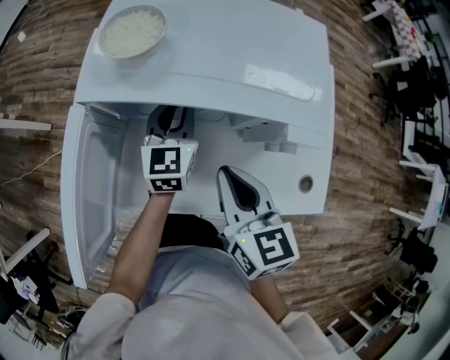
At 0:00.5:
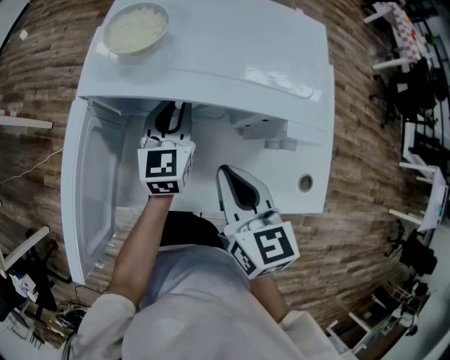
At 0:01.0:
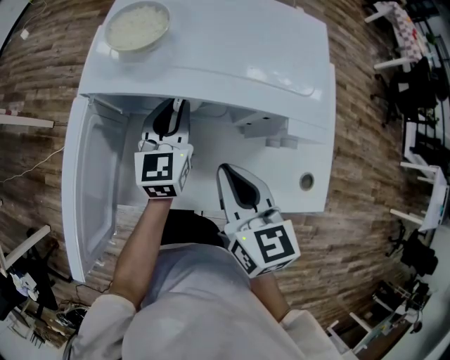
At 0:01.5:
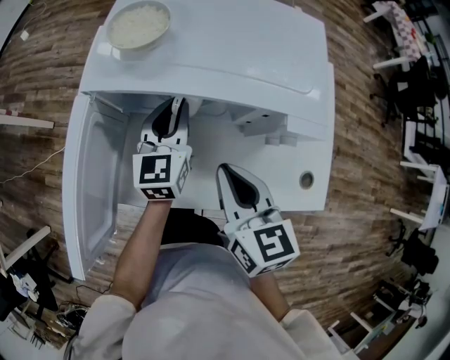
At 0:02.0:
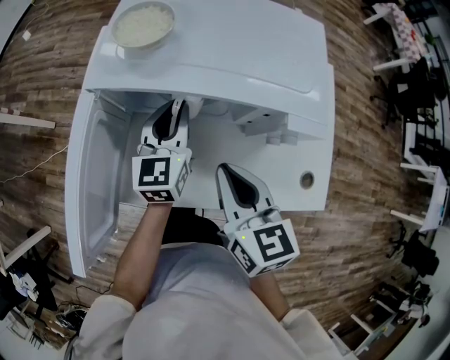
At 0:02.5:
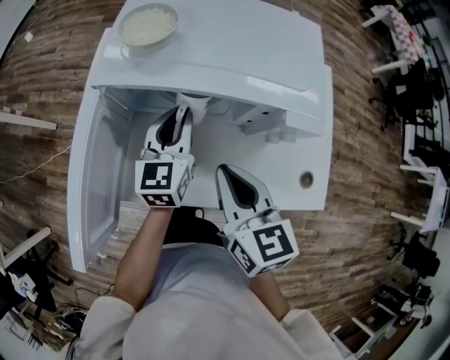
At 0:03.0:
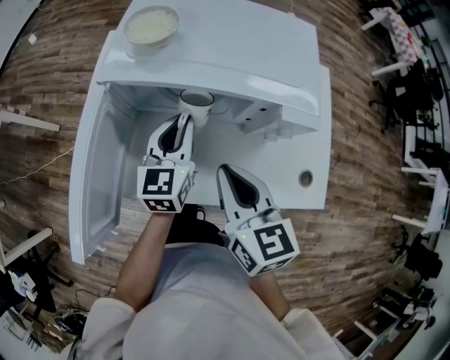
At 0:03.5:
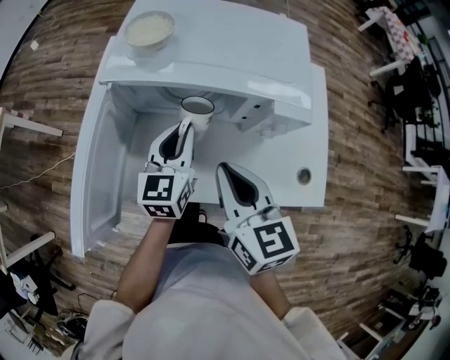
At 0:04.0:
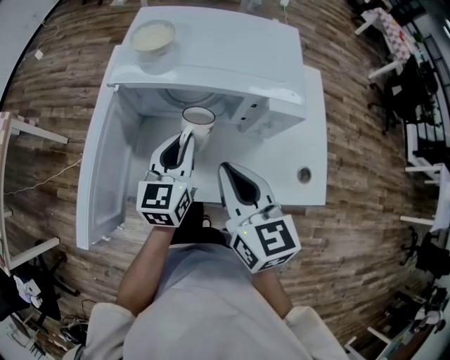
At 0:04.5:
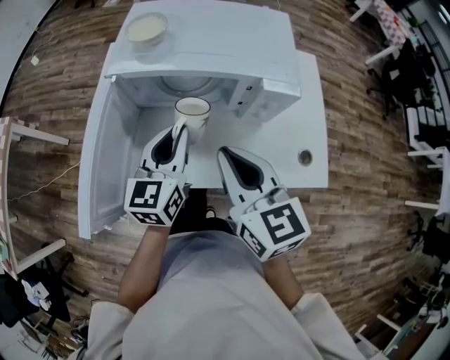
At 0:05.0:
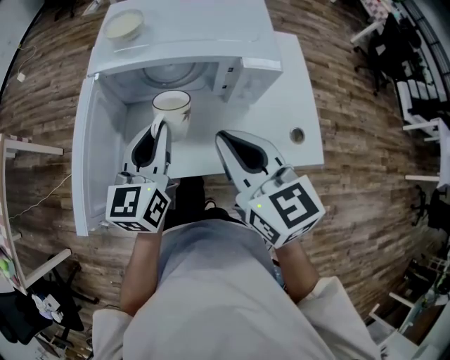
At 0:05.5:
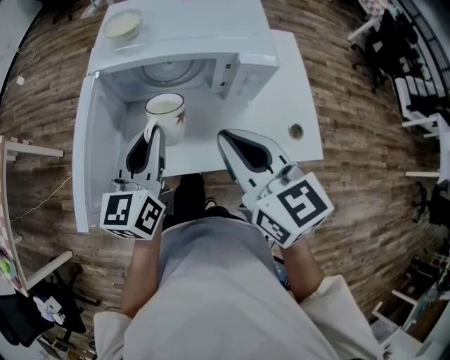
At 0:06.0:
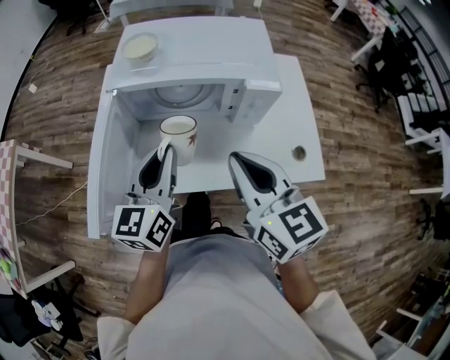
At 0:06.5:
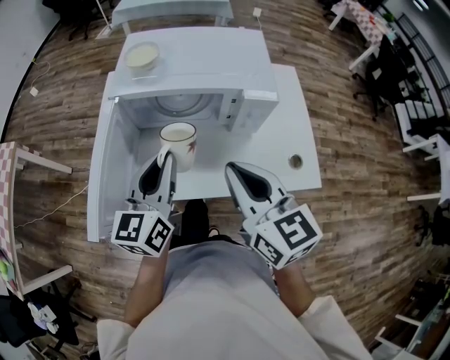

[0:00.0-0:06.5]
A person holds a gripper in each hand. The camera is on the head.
0:00.0 to 0:02.0: The left gripper shifts by some 5 cm.
0:02.0 to 0:04.5: The left gripper is displaced backward and upward by some 15 cm, while the right gripper travels upward and backward by about 10 cm.
0:04.5 to 0:06.5: The left gripper heads upward and backward, covering roughly 10 cm. The right gripper ends up roughly 5 cm from where it was.

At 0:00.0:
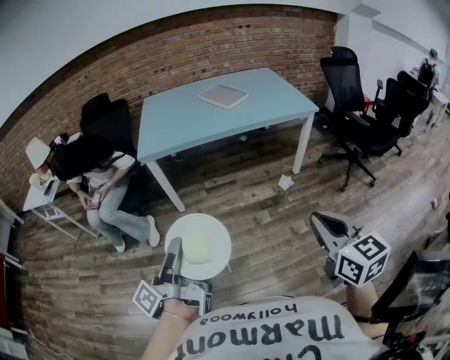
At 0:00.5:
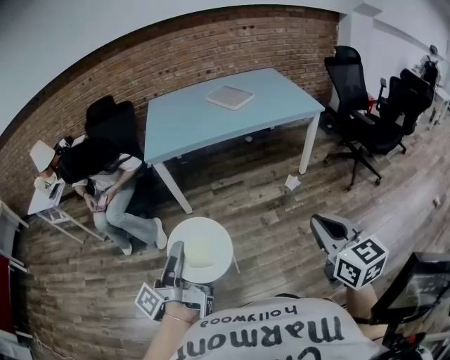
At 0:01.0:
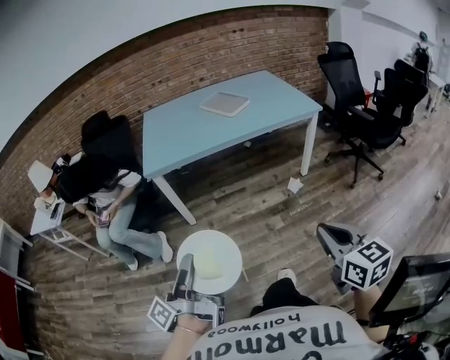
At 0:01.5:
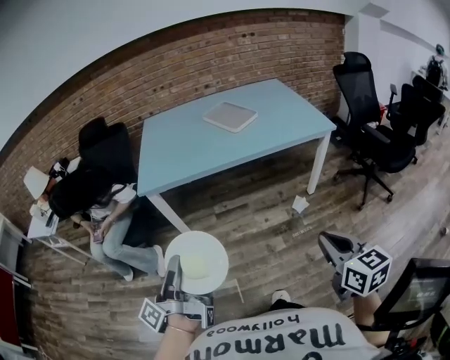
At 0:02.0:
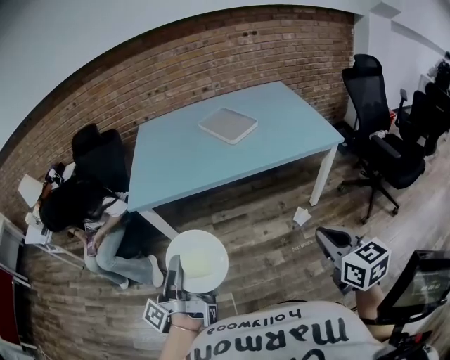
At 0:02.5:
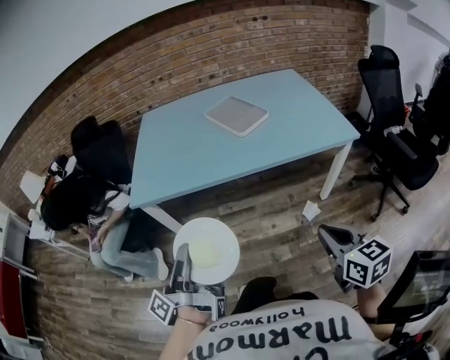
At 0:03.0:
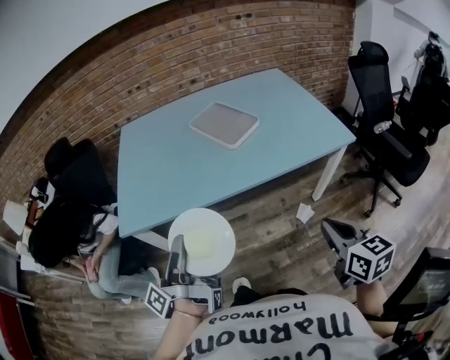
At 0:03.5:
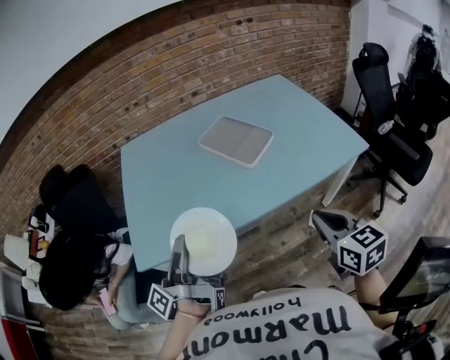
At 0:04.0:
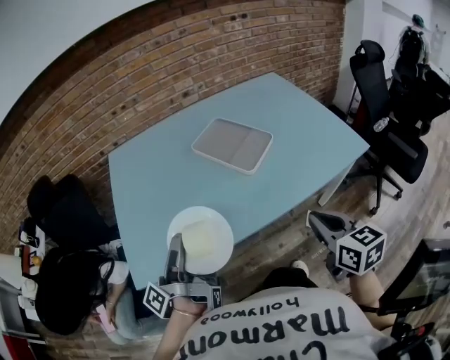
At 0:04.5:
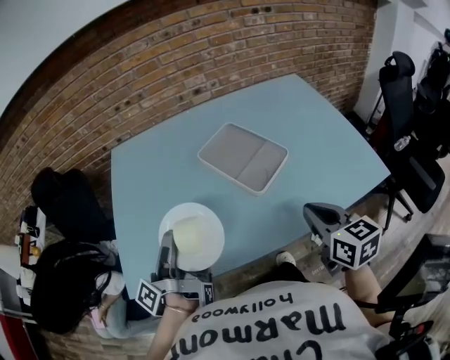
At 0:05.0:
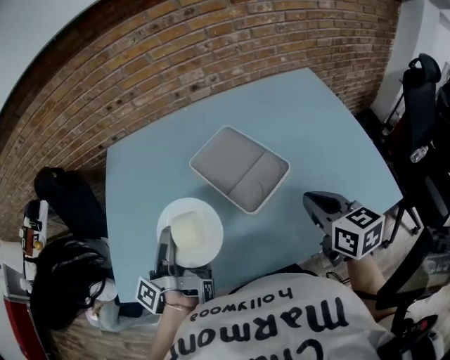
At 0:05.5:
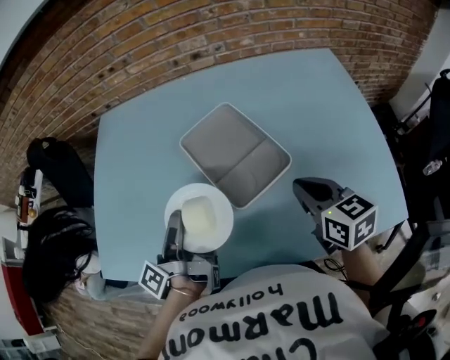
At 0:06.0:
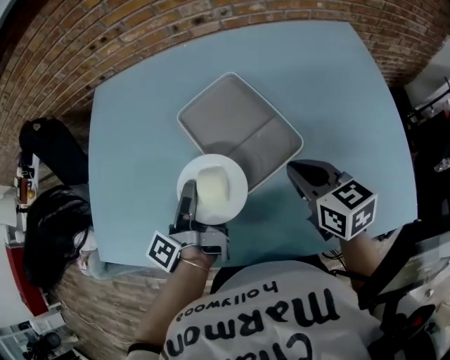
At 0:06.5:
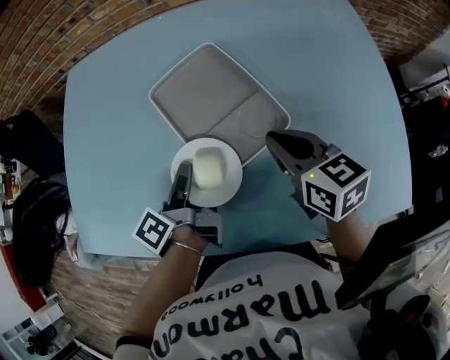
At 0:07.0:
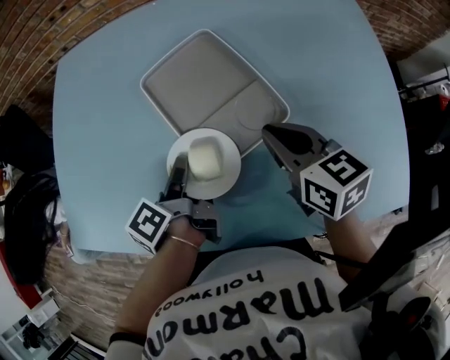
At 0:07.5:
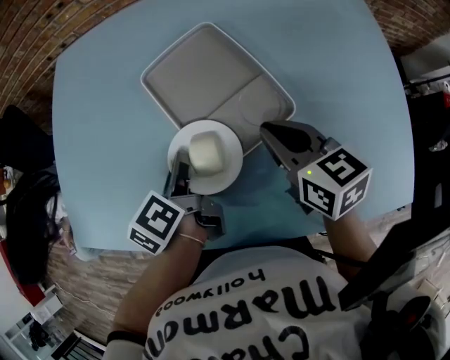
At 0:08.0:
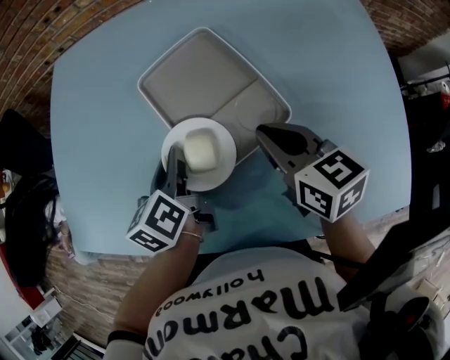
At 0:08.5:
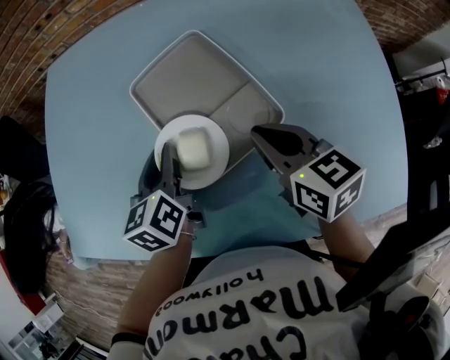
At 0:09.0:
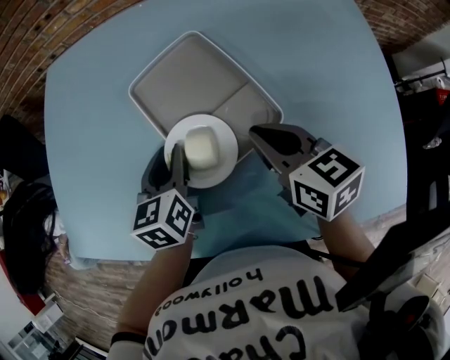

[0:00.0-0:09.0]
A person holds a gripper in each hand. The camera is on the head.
0:00.0 to 0:02.0: The right gripper ends up roughly 30 cm from where it was.
0:02.0 to 0:04.5: The right gripper moves some 50 cm.
0:04.5 to 0:07.0: The right gripper shifts by about 25 cm, and turns by approximately 30 degrees.

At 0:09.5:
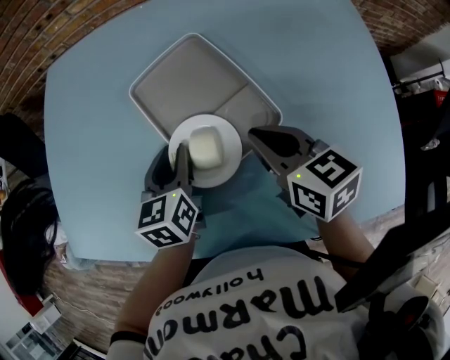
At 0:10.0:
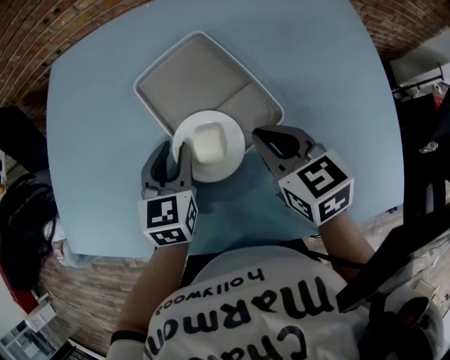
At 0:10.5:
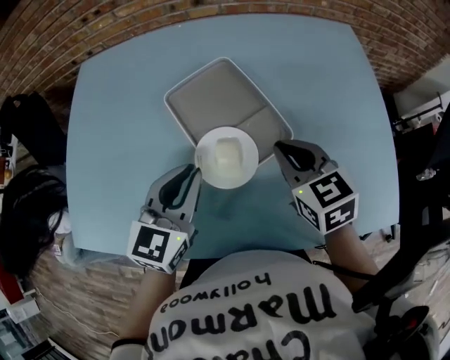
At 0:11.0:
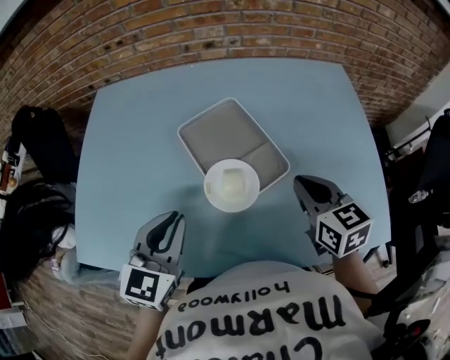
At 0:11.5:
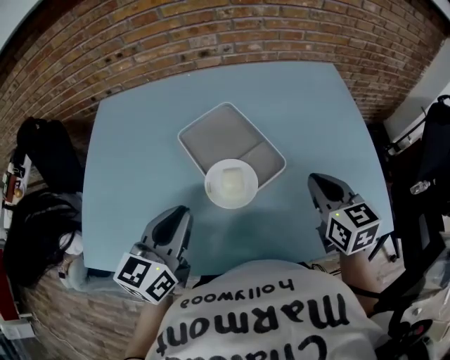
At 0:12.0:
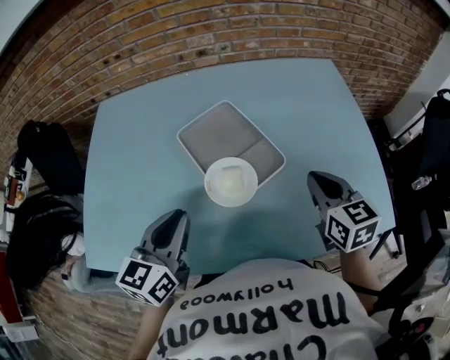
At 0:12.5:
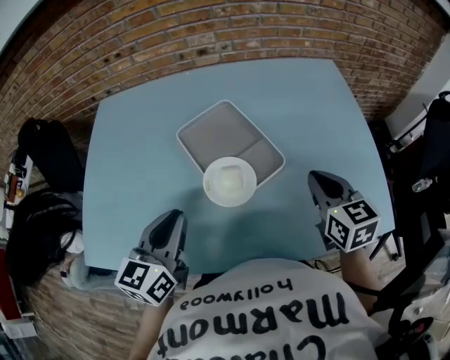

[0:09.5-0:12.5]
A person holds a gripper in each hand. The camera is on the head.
0:09.5 to 0:11.0: The right gripper travels upward by approximately 5 cm.
0:11.0 to 0:12.5: The right gripper ends up roughly 5 cm from where it was.

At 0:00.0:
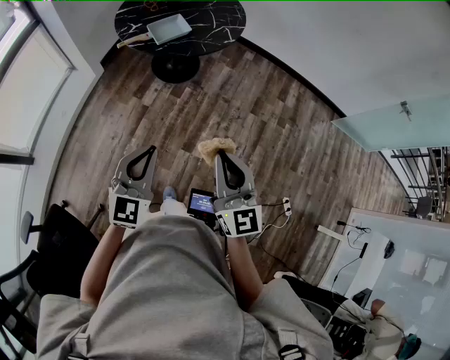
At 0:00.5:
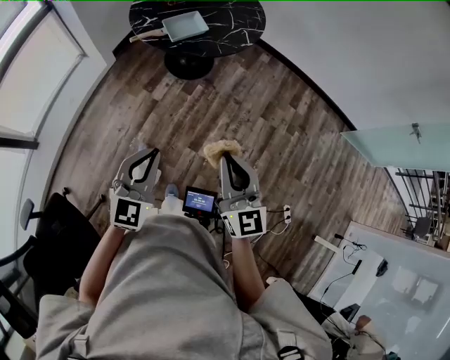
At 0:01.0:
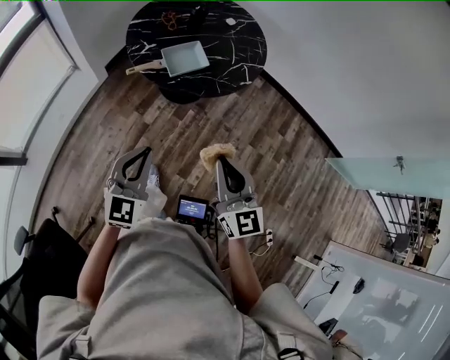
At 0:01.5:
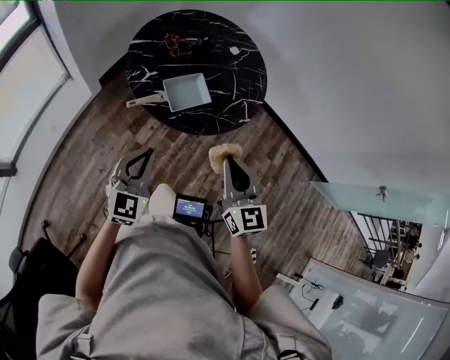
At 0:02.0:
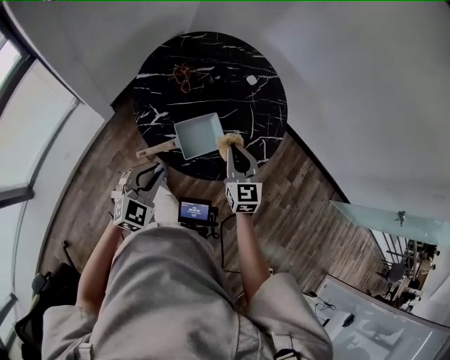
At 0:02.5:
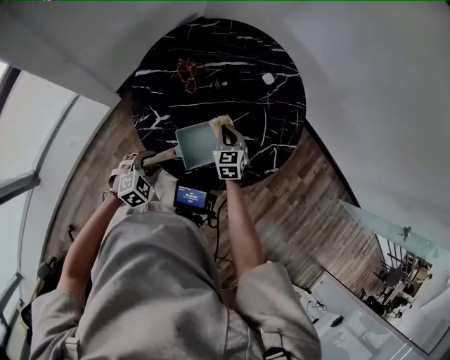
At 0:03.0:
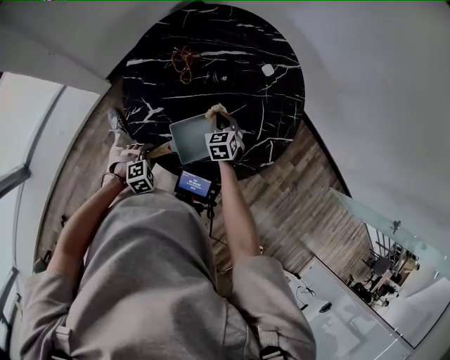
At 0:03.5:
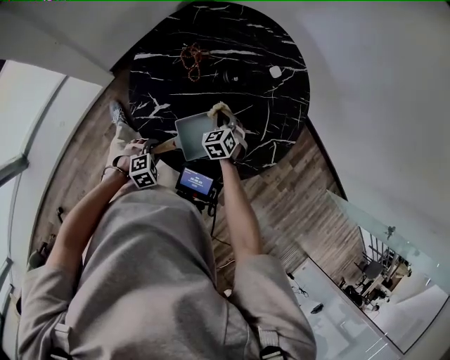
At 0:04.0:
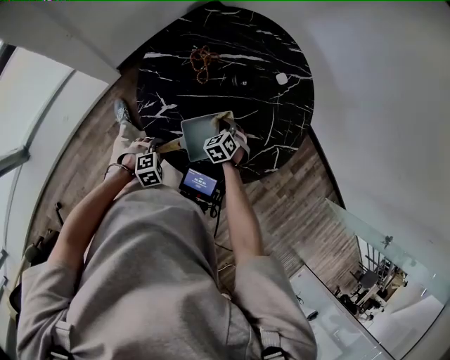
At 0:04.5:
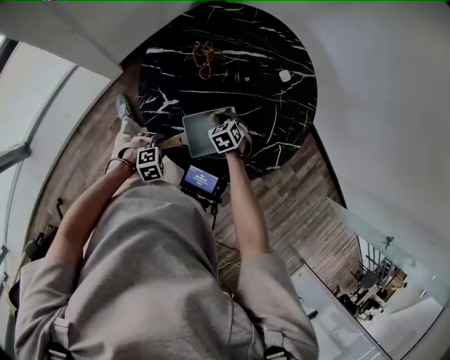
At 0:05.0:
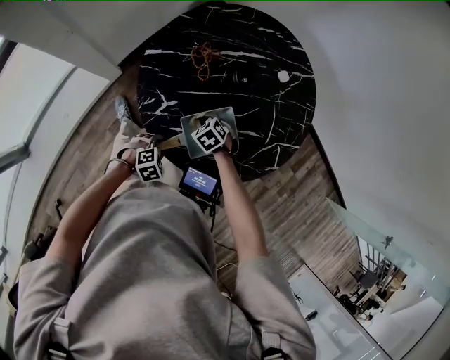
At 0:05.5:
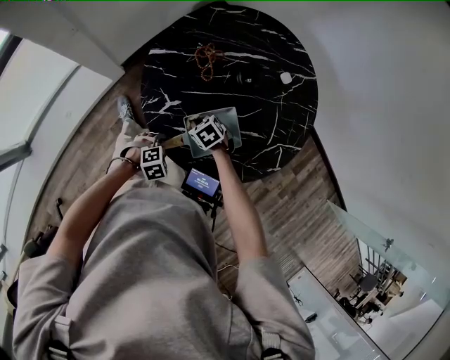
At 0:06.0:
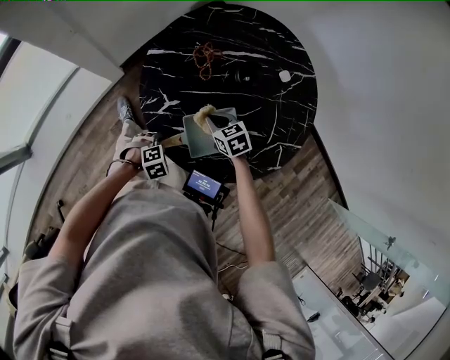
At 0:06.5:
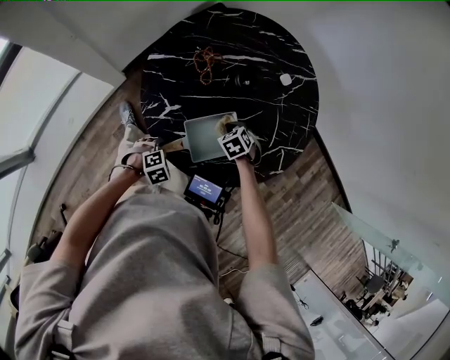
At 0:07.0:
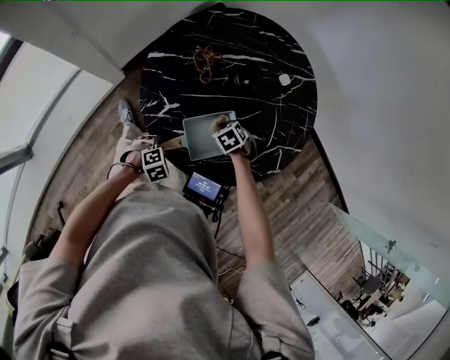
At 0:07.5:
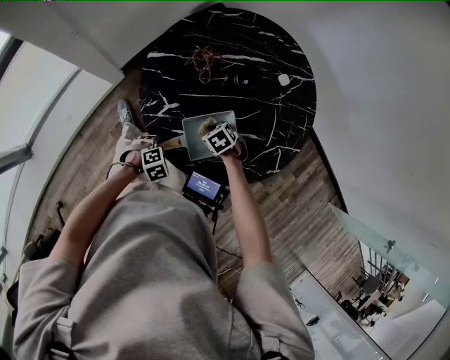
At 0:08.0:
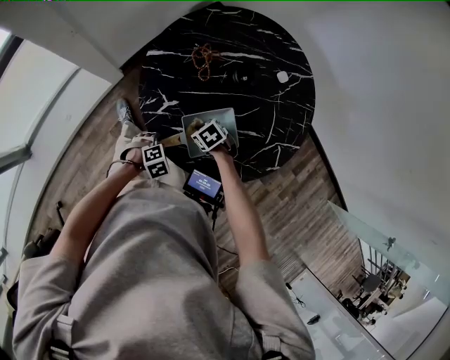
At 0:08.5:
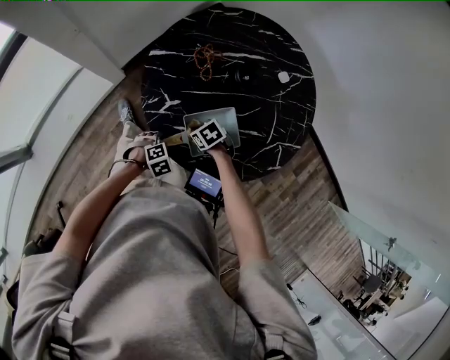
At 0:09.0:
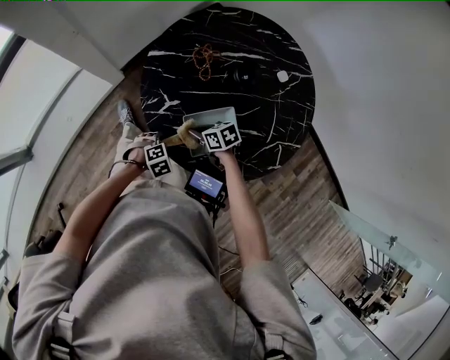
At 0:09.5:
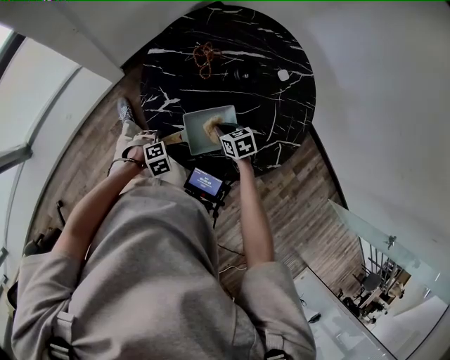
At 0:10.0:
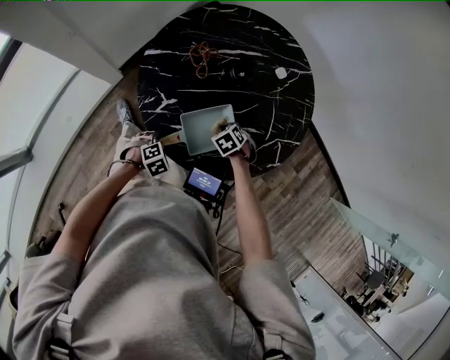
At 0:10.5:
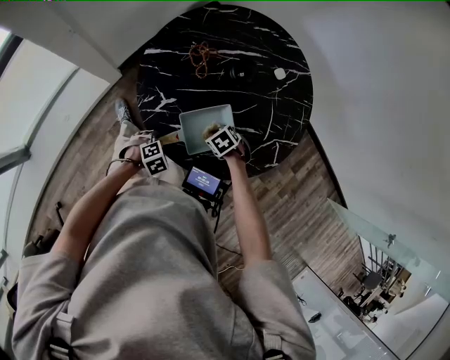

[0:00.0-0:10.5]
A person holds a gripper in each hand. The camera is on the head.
0:00.0 to 0:02.0: The two grippers travel together, forward, some 60 cm. The right gripper rotates about 20 degrees.
0:02.0 to 0:04.0: The left gripper is displaced downward by approximately 25 cm, and angles its fingers downward, by some 40 degrees, while the right gripper moves downward and forward, some 30 cm, and angles its fingers downward, by roughly 40 degrees.
0:06.5 to 0:08.5: The right gripper ends up about 15 cm from where it was, and changes its angle by some 20 degrees.
0:08.5 to 0:10.5: The right gripper ends up some 10 cm from where it was.
